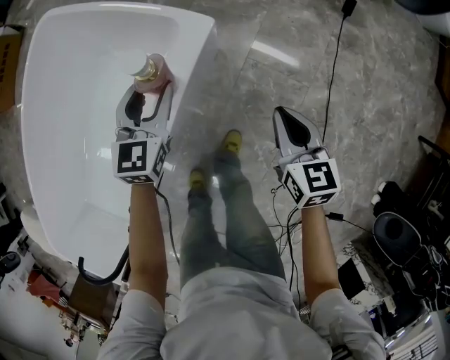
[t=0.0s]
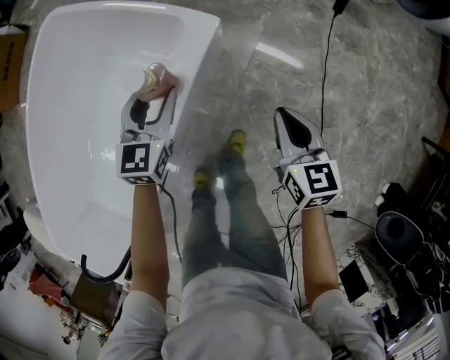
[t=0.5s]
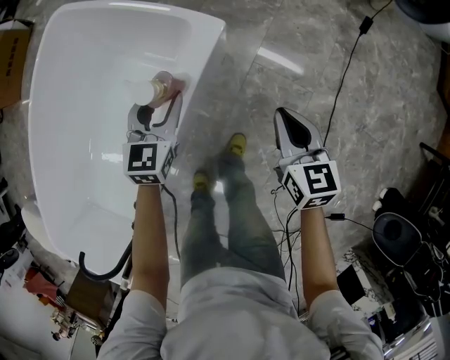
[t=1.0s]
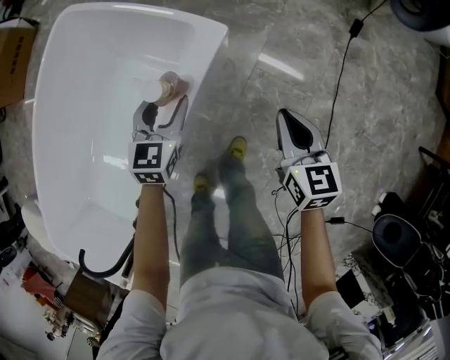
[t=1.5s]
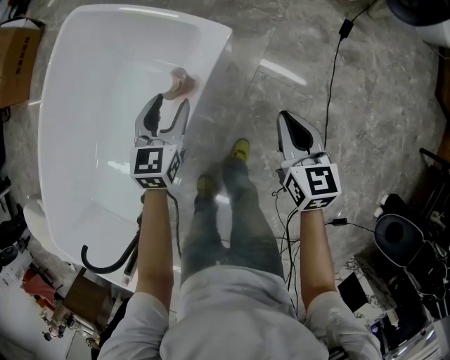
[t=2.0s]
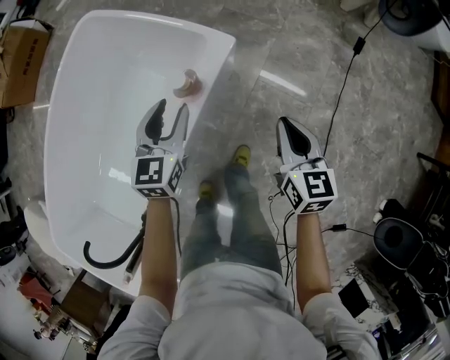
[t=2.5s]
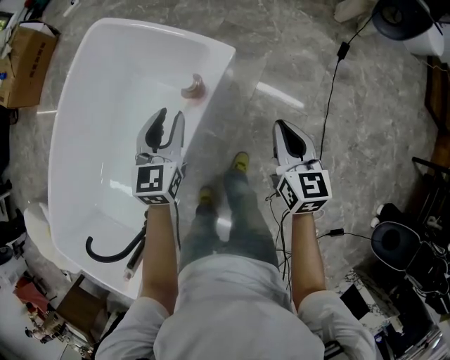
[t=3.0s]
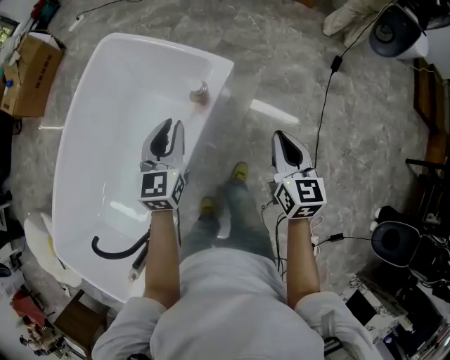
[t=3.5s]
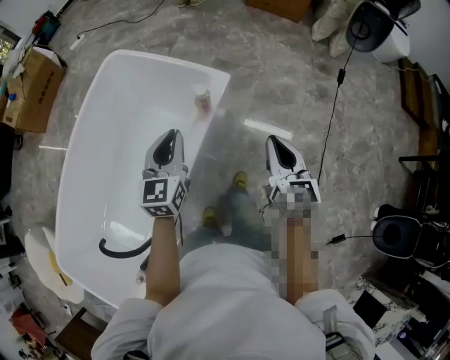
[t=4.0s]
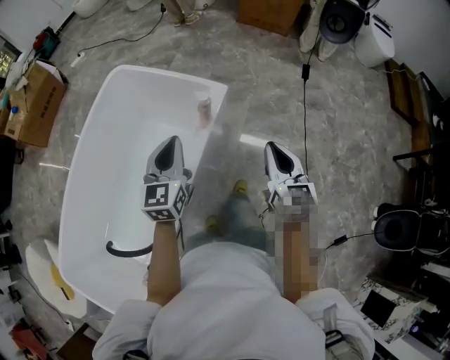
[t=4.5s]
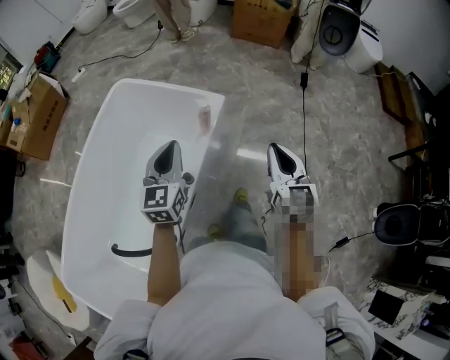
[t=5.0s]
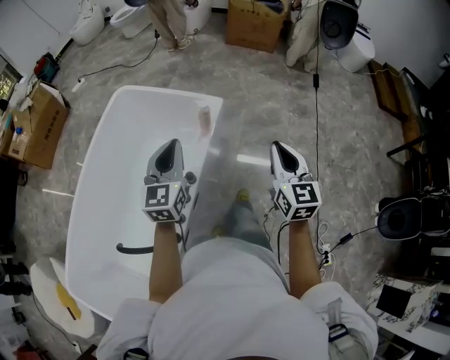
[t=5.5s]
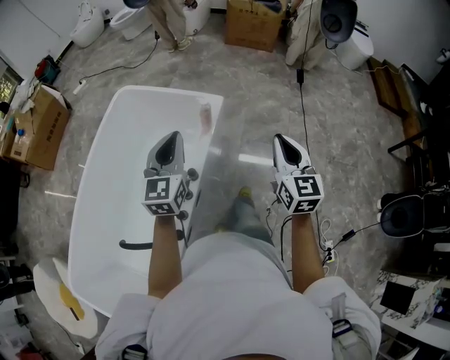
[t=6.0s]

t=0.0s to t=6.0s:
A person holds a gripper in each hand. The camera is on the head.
t=0.0s to t=2.0s: The right gripper heads upward, covering about 10 cm. The left gripper is displaced backward and upward by some 10 cm.
t=2.0s to t=4.0s: Both grippers move upward and backward, about 30 cm. The left gripper closes.
t=4.0s to t=6.0s: The left gripper is displaced upward and backward by roughly 20 cm, while the right gripper shifts roughly 20 cm backward and upward.

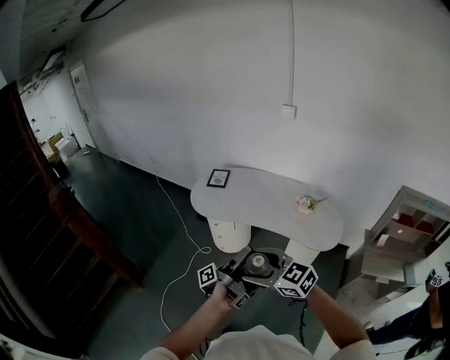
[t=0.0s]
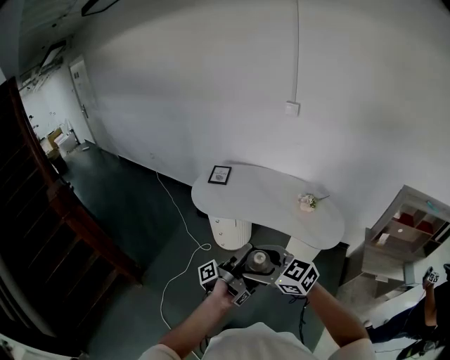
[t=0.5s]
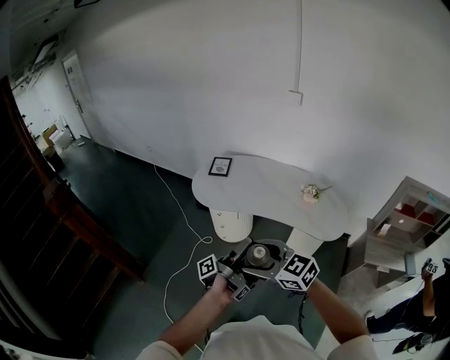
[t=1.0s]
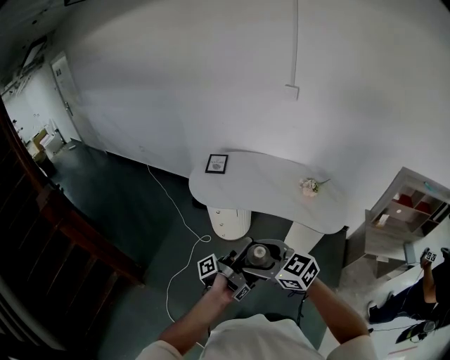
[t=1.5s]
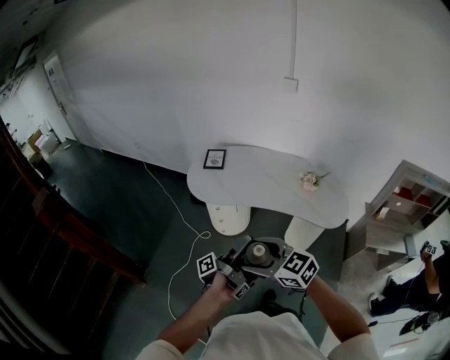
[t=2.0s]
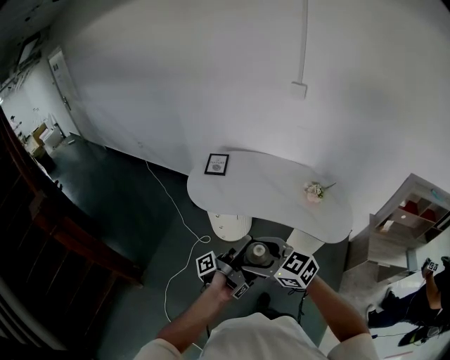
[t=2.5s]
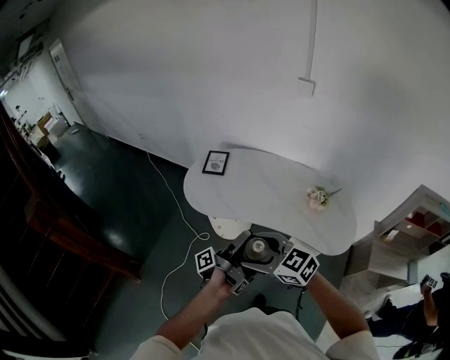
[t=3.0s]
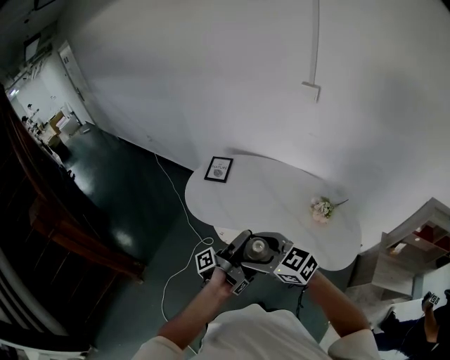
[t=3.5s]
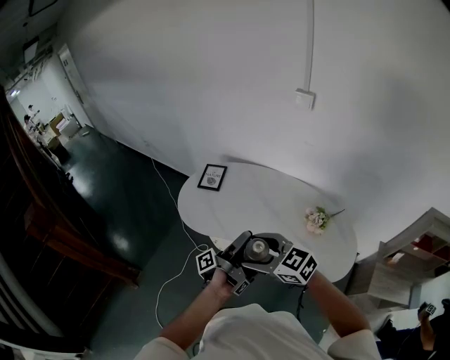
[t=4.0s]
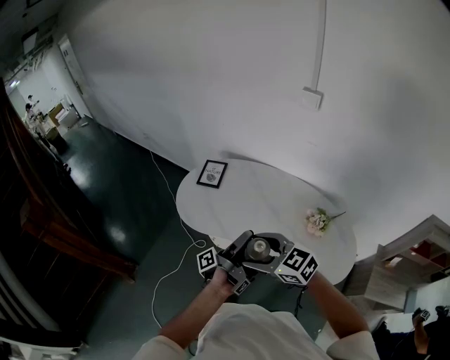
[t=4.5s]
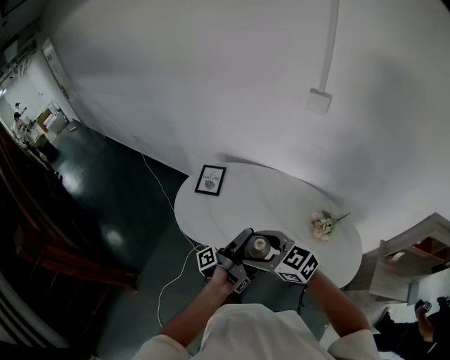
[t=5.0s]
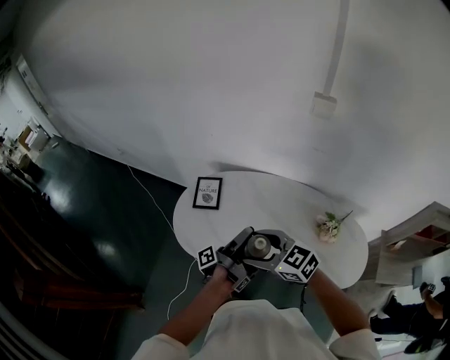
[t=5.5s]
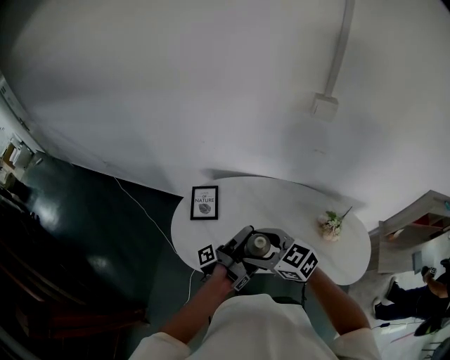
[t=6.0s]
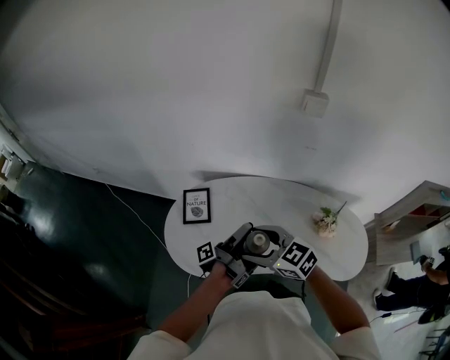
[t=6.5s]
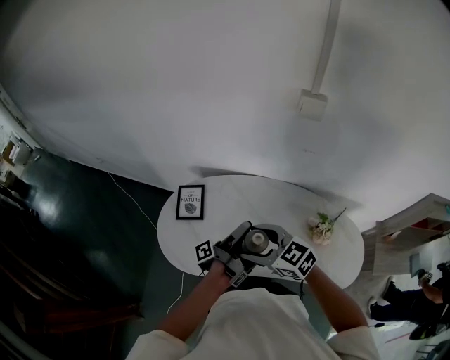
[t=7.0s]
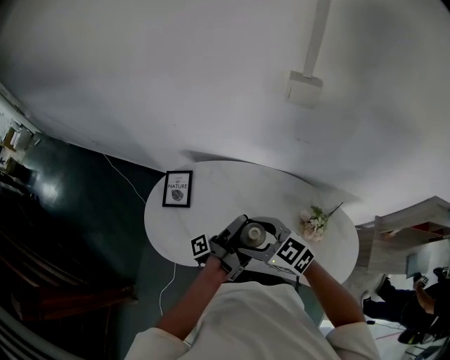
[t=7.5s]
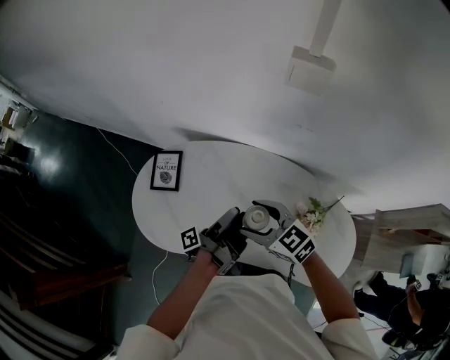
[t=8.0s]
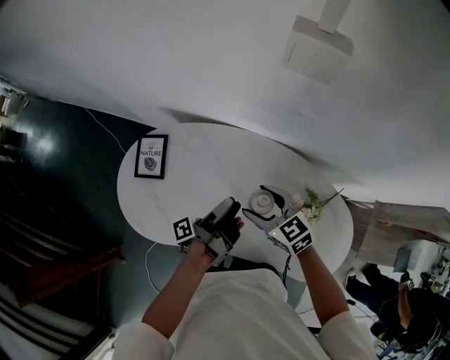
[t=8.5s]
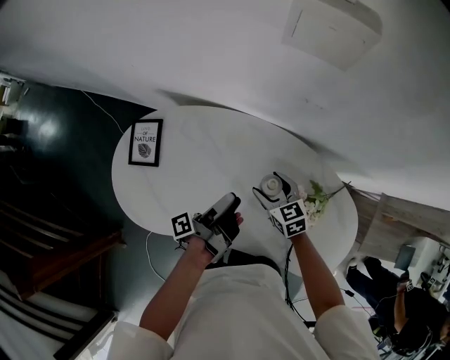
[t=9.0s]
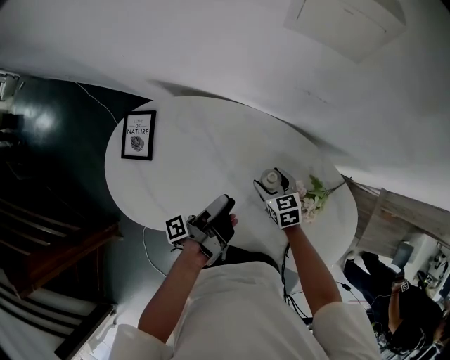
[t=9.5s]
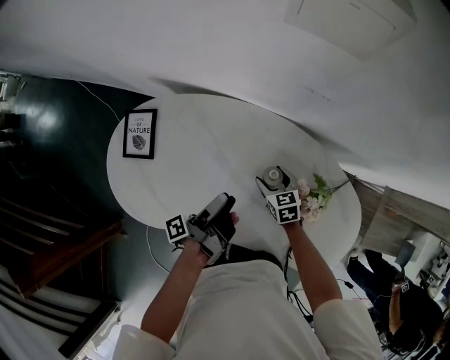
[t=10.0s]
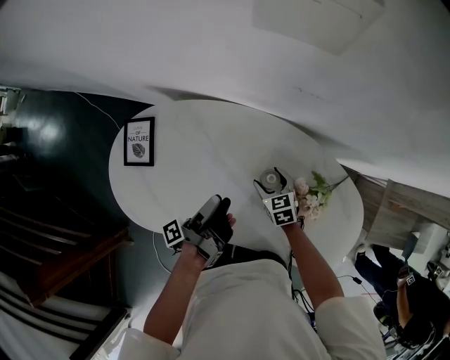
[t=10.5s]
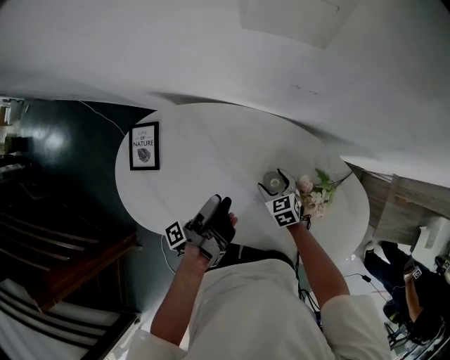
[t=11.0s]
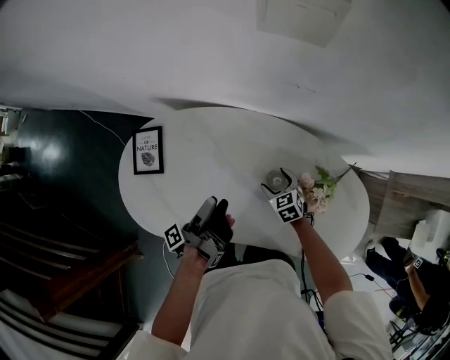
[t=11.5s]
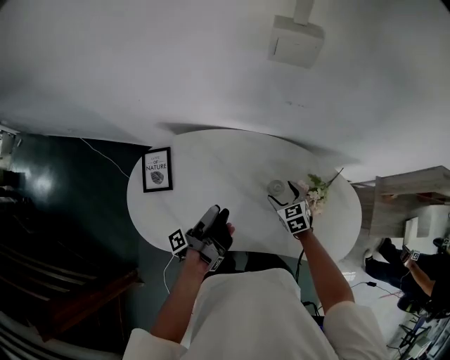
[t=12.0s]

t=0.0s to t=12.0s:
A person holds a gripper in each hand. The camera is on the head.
t=0.0s to t=2.0s: The right gripper changes place by some 10 cm.
t=2.0s to t=4.0s: The right gripper changes place by some 30 cm.
t=4.0s to t=6.0s: The right gripper ends up some 30 cm from where it was.
t=6.0s to t=8.0s: The right gripper moves some 25 cm.
t=8.0s to t=10.0s: The right gripper shifts roughly 30 cm downward, and rotates approximately 40 degrees.
t=10.0s to t=12.0s: The right gripper moves upward, approximately 10 cm.

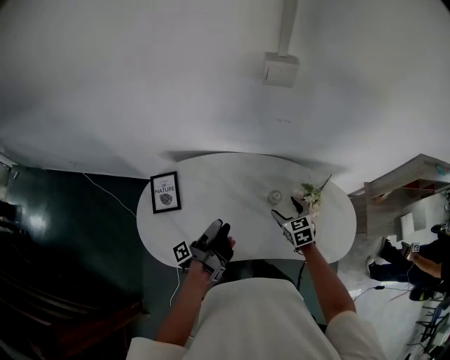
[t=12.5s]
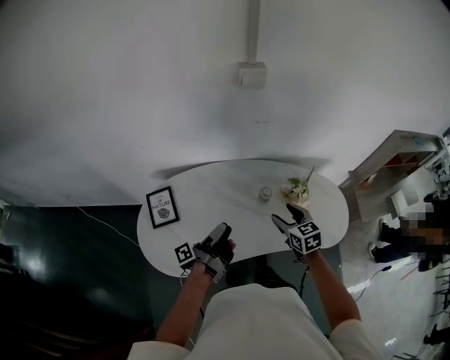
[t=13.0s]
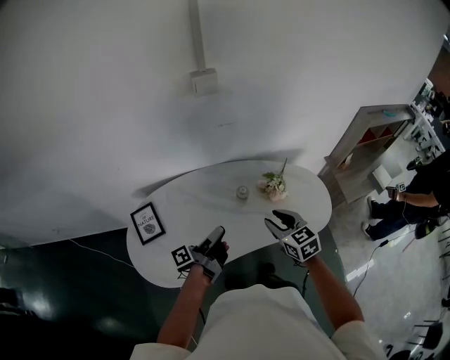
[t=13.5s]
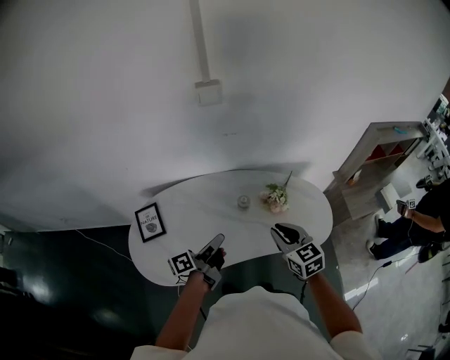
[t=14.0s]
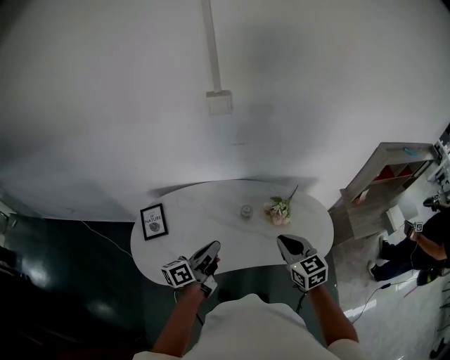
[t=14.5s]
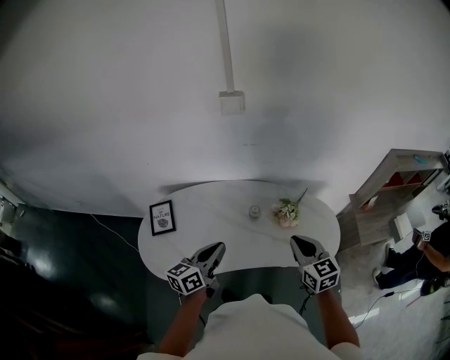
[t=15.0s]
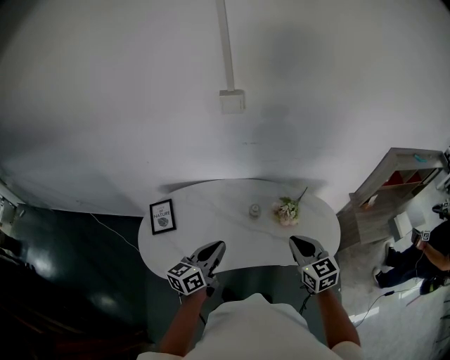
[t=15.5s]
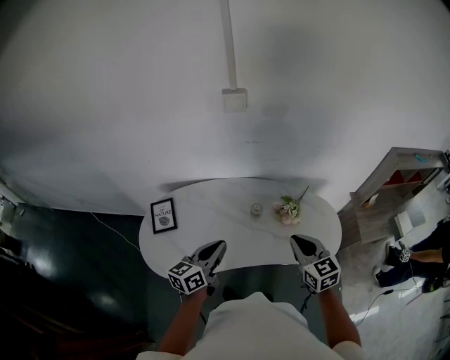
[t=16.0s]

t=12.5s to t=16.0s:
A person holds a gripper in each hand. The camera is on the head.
t=12.5s to t=14.5s: The right gripper heads upward, covering about 20 cm, swivels approximately 20 degrees, and closes.

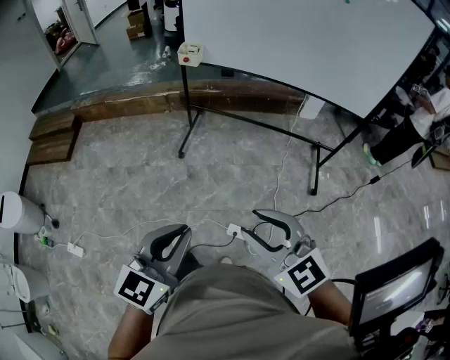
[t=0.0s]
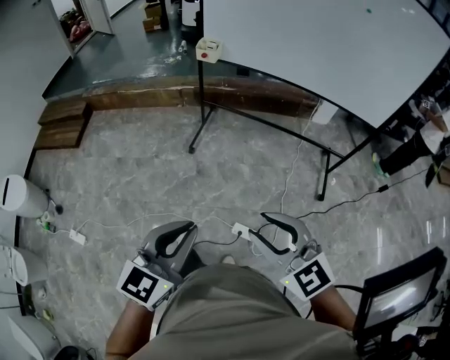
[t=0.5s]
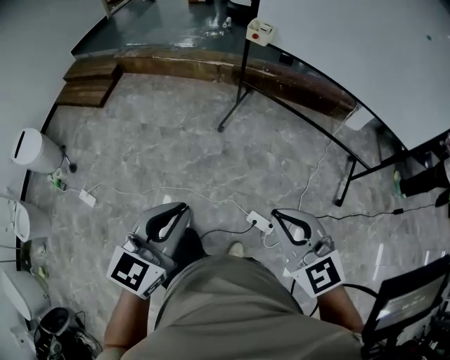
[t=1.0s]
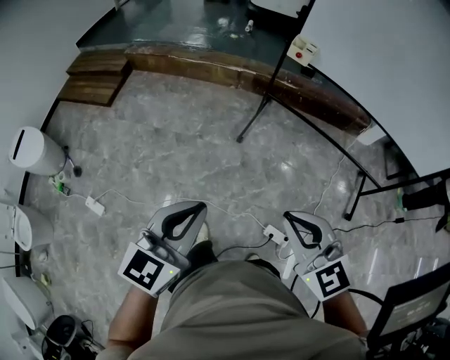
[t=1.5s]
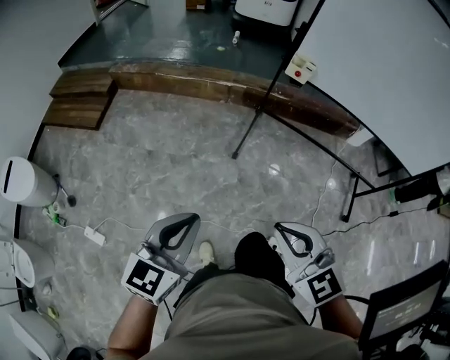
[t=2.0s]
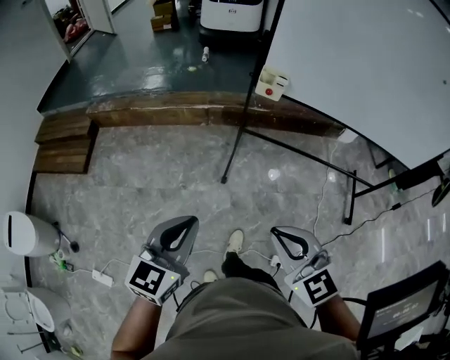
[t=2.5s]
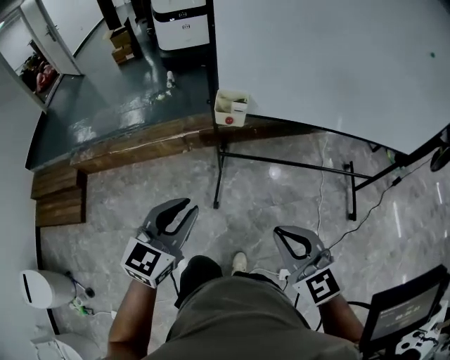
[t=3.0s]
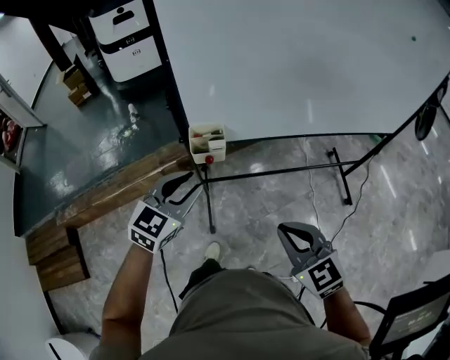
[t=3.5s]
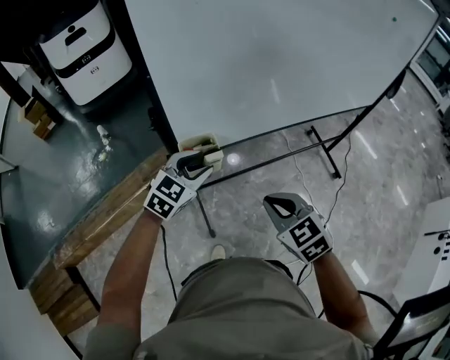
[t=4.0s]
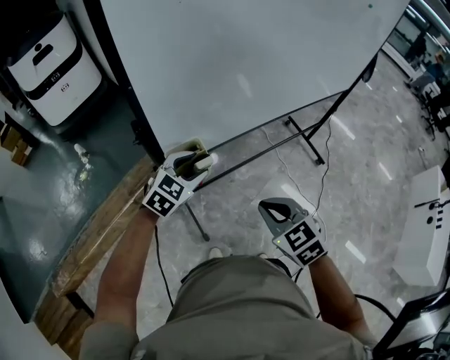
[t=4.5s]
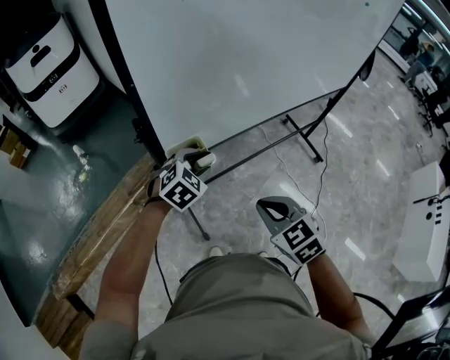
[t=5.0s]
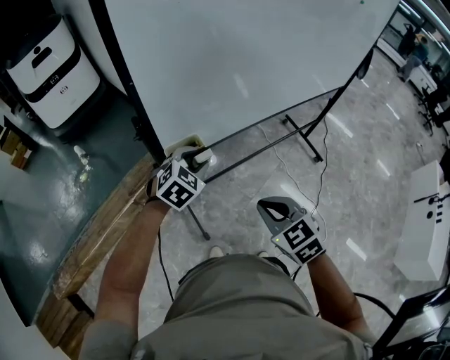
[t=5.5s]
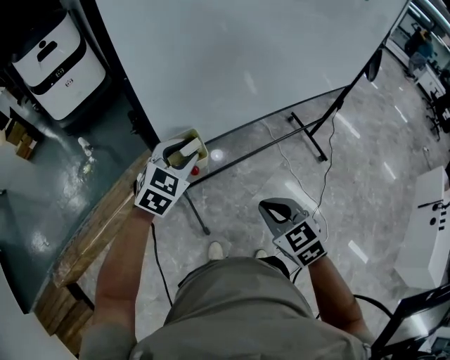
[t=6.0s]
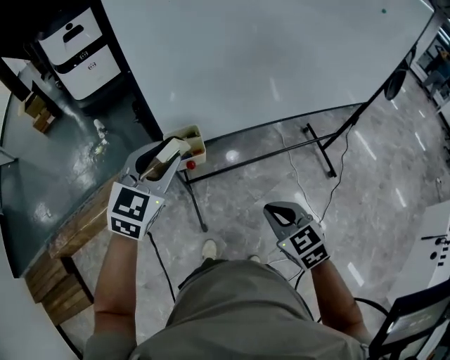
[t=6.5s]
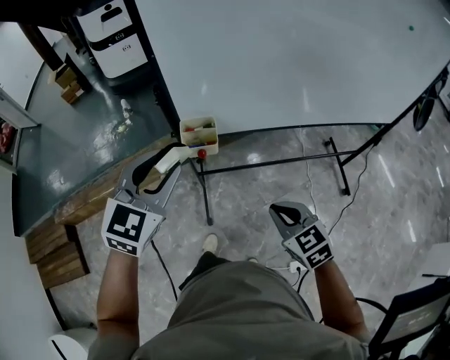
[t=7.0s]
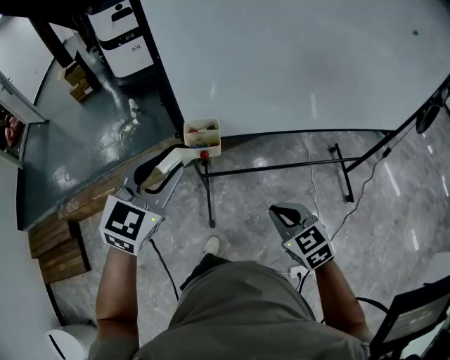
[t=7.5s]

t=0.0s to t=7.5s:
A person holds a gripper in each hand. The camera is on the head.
t=0.0s to t=2.0s: The grippers both shift to the left and forward by approximately 40 cm. The right gripper closes up.
t=2.0s to t=4.0s: The pair of grippers is taken roughly 70 cm. The left gripper rotates approximately 60 degrees, and opens. Meanwhile the right gripper rotates approximately 50 degrees.
t=5.5s to t=7.5s: The right gripper ends up some 10 cm from where it was, and turns by approximately 20 degrees. Meanwhile the left gripper moves upward, some 20 cm, and changes its angle by approximately 40 degrees.
